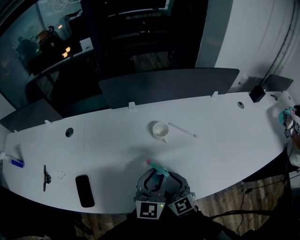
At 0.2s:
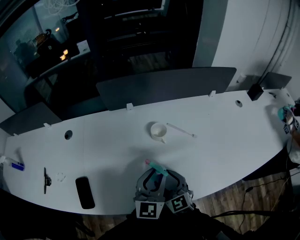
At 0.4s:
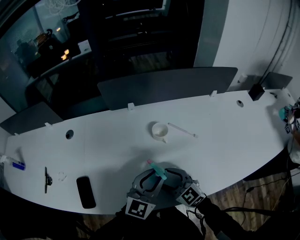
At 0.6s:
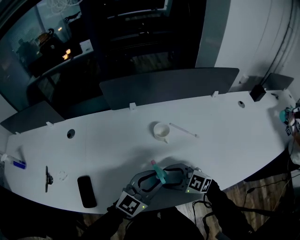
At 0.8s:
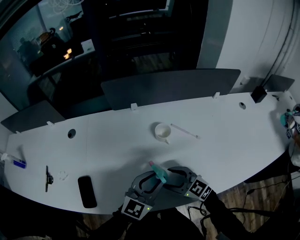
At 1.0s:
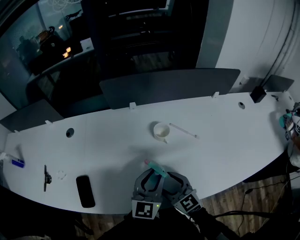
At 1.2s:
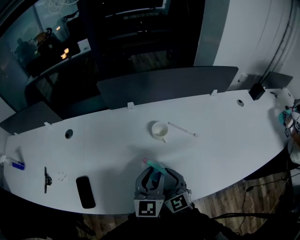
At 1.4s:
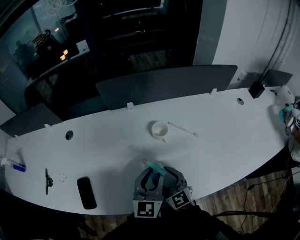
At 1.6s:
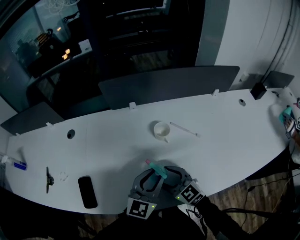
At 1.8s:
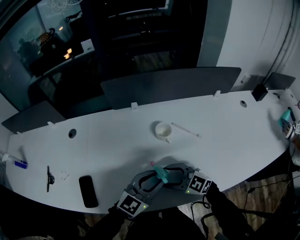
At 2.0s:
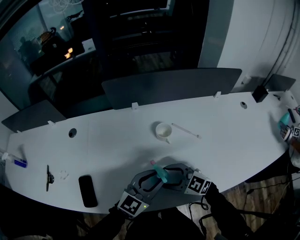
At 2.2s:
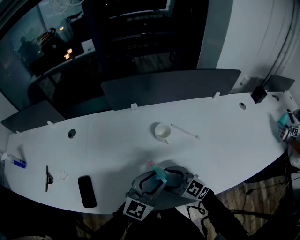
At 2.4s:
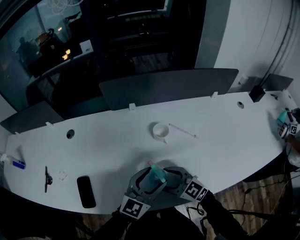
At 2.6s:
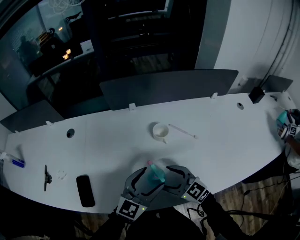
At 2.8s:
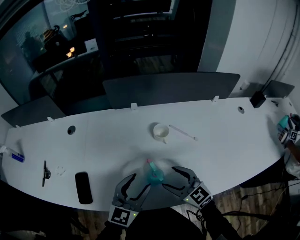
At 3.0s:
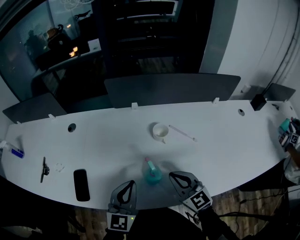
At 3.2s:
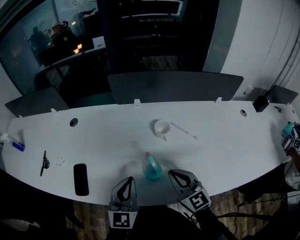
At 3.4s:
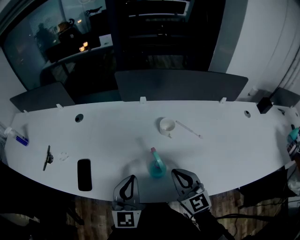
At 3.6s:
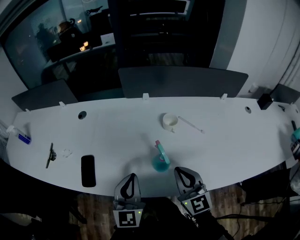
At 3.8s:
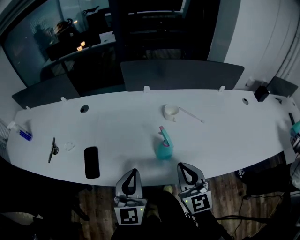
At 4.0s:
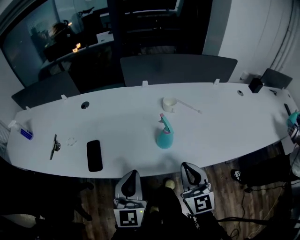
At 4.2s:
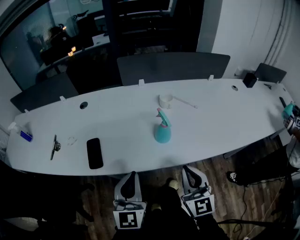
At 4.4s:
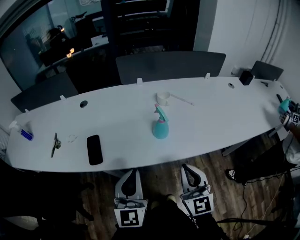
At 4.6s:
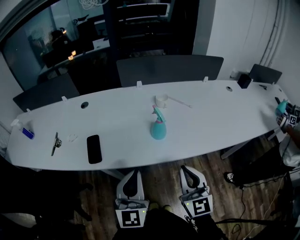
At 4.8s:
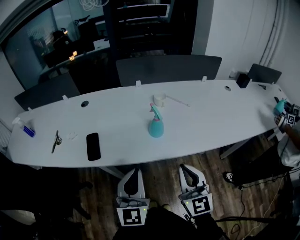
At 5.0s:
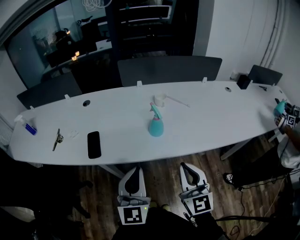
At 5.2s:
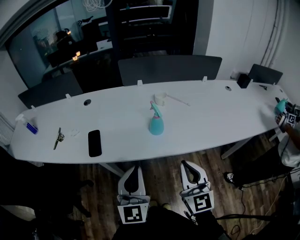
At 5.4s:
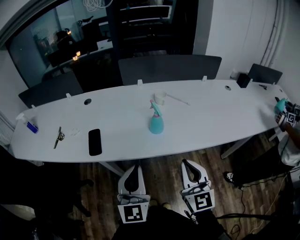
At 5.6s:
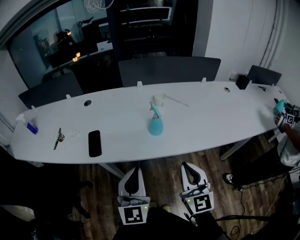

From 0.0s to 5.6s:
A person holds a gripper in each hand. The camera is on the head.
From 1.4s to 2.8s: The left gripper goes roughly 5 cm to the left, and opens up; the right gripper changes place by some 5 cm.
From 2.8s to 4.2s: The right gripper heads backward, covering roughly 20 cm, turns by roughly 40 degrees, and closes its fingers. The left gripper moves backward and to the left, some 20 cm, swivels about 20 degrees, and closes up.
From 4.2s to 5.6s: The two grippers go some 10 cm backward.

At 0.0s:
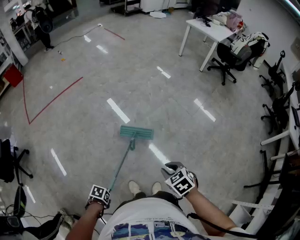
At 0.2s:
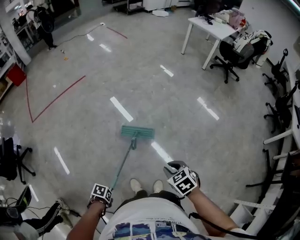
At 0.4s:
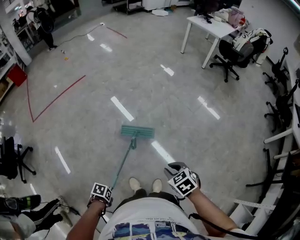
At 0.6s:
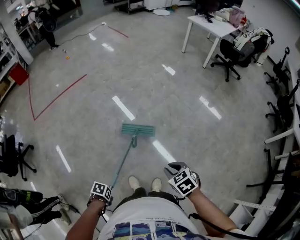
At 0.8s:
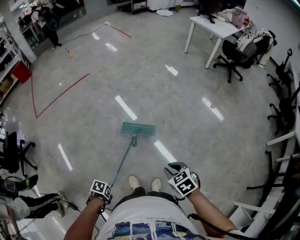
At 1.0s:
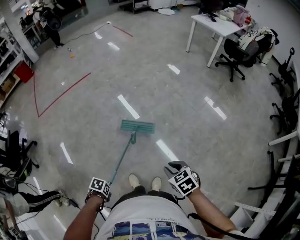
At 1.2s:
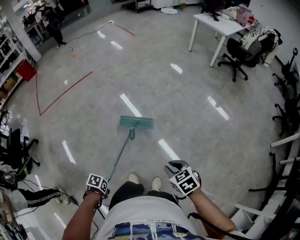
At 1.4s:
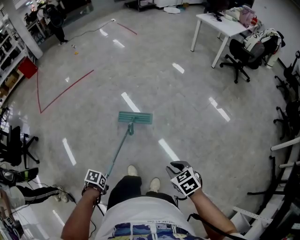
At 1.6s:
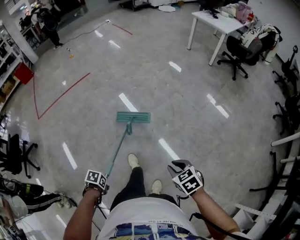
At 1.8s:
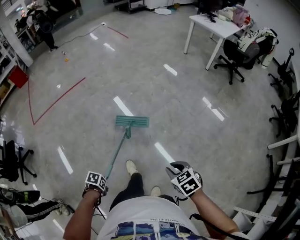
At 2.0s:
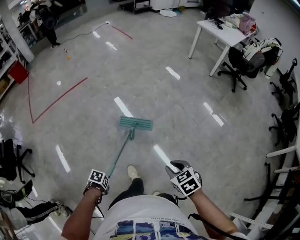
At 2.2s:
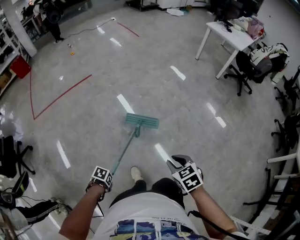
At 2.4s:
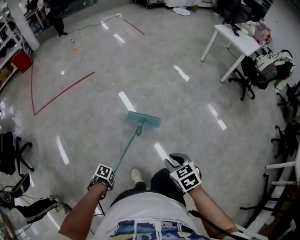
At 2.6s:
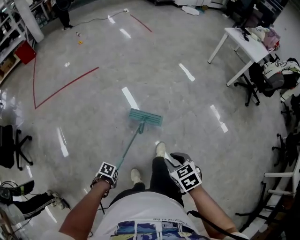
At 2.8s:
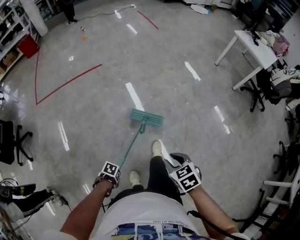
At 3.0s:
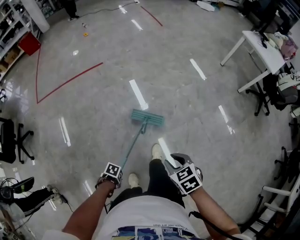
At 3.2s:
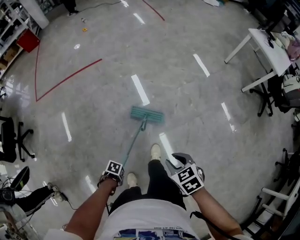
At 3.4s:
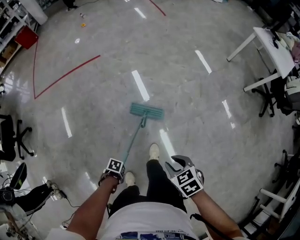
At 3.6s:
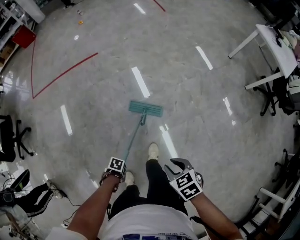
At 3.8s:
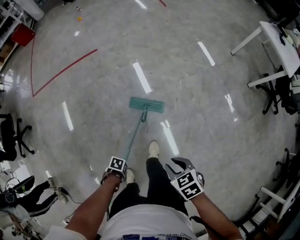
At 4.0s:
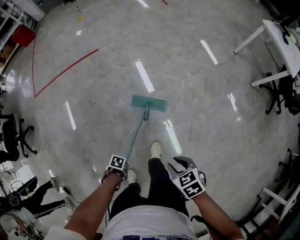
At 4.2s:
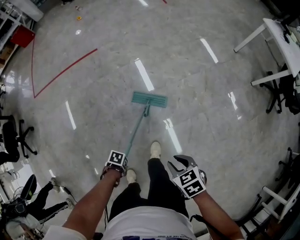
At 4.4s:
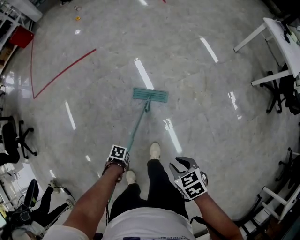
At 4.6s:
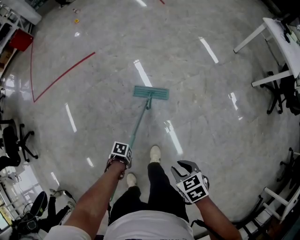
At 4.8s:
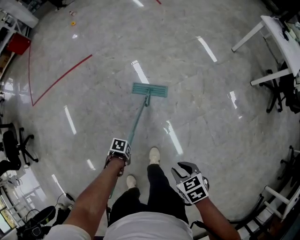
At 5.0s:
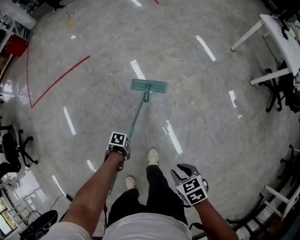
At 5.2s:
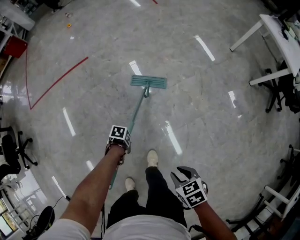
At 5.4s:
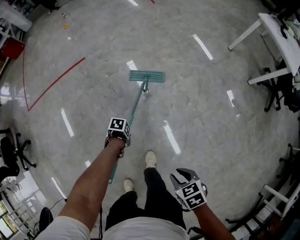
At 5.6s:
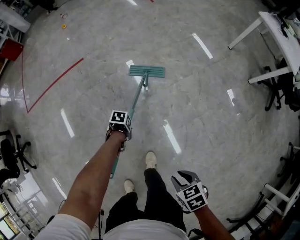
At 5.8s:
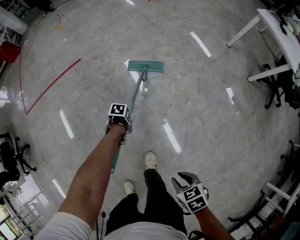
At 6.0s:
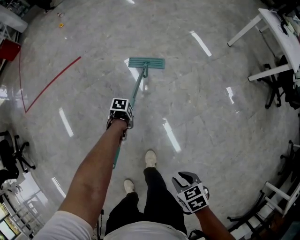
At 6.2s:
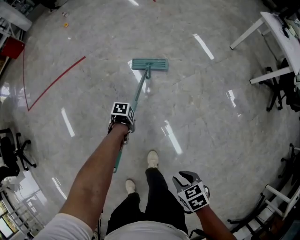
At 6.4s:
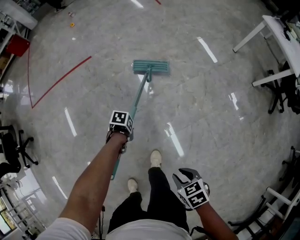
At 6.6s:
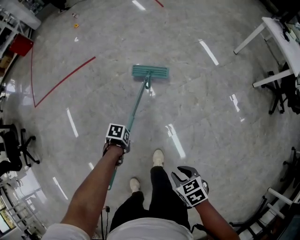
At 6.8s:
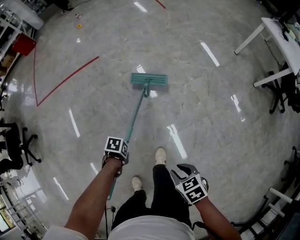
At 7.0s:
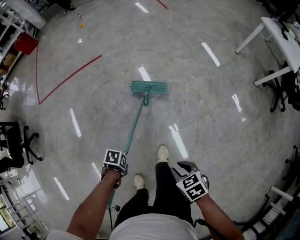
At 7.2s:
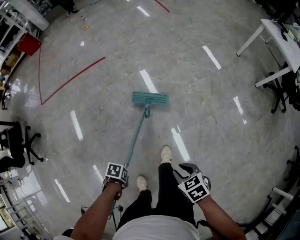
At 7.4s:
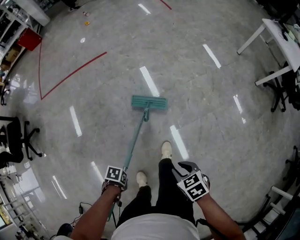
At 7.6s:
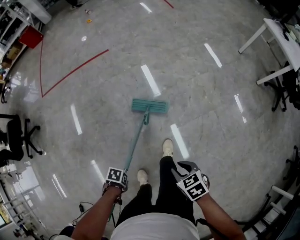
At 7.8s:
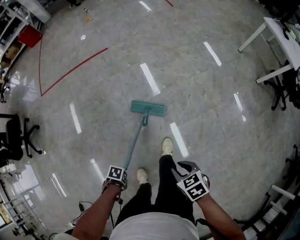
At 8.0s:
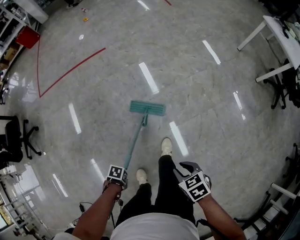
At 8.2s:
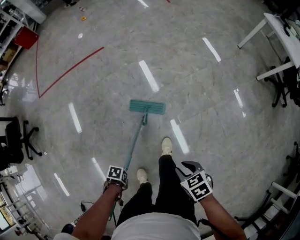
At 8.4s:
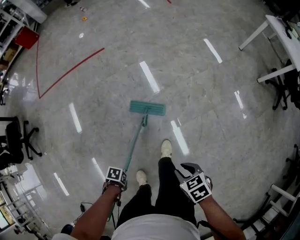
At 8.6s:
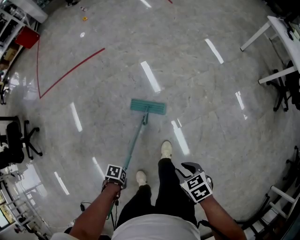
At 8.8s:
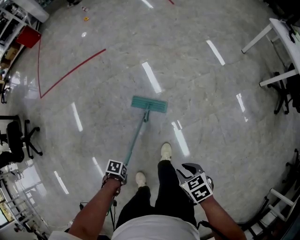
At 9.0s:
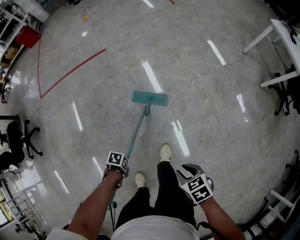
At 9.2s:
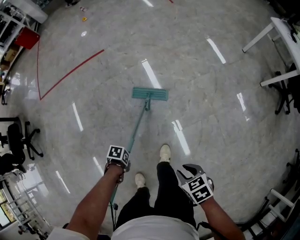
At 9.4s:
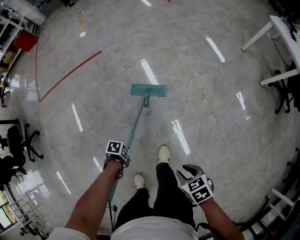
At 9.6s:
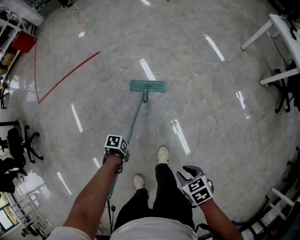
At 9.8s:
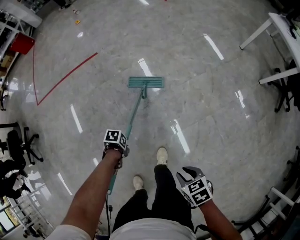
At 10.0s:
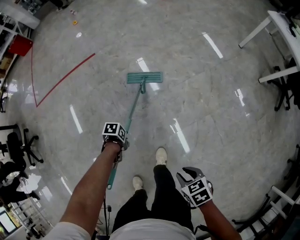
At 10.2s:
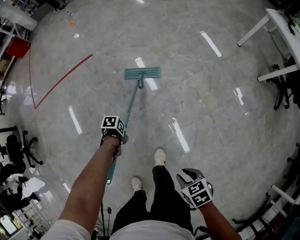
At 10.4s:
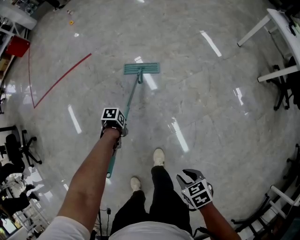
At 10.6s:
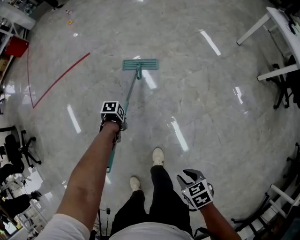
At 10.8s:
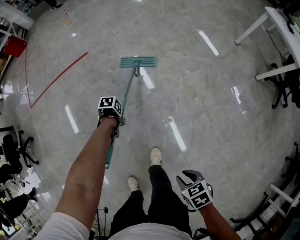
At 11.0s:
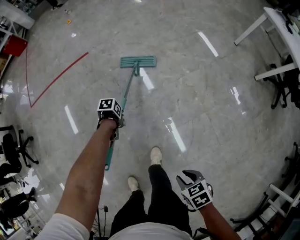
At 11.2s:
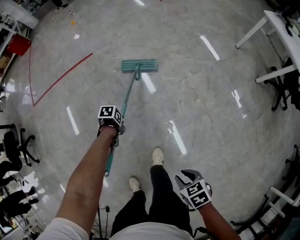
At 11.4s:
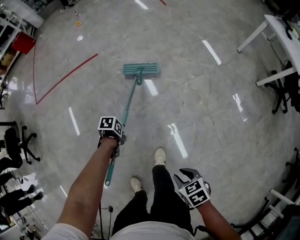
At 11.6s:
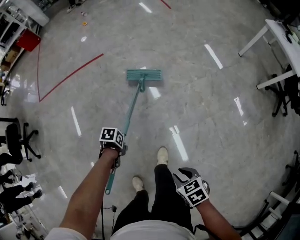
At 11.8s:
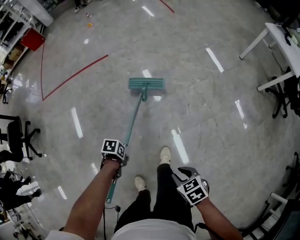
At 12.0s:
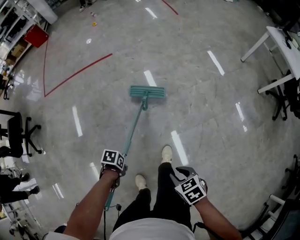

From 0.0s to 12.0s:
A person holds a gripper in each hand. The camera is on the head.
From 0.0s to 1.6s: The right gripper moves approximately 10 cm.
From 1.6s to 3.0s: The right gripper changes place by about 35 cm.
From 3.0s to 4.4s: The right gripper shifts by approximately 10 cm.
From 4.4s to 6.0s: The right gripper changes place by some 5 cm.
From 6.0s to 7.6s: The right gripper shifts by some 15 cm.
From 7.6s to 9.0s: The right gripper changes place by some 5 cm.
From 9.0s to 10.4s: The right gripper shifts by about 5 cm.
From 10.4s to 12.0s: The right gripper moves about 15 cm.

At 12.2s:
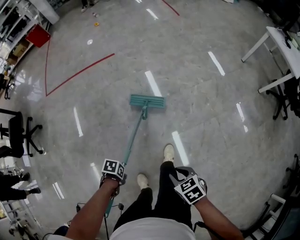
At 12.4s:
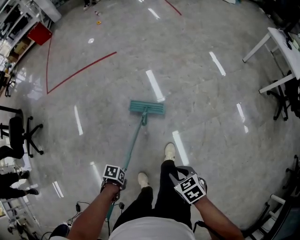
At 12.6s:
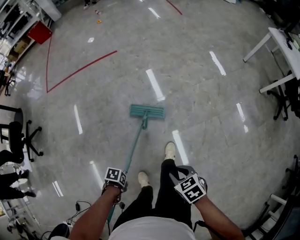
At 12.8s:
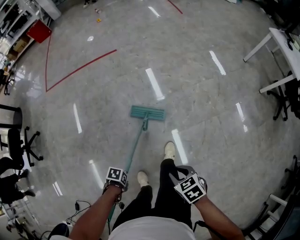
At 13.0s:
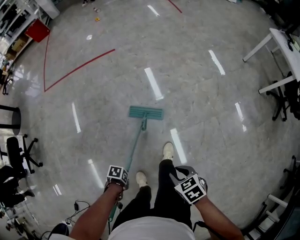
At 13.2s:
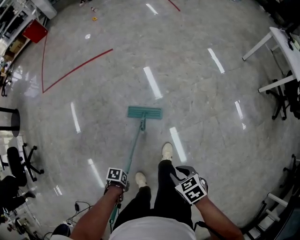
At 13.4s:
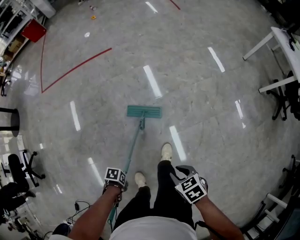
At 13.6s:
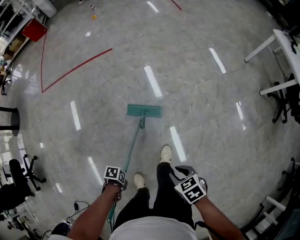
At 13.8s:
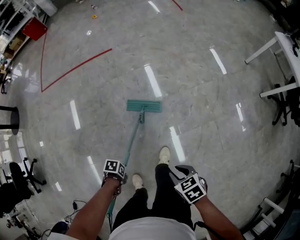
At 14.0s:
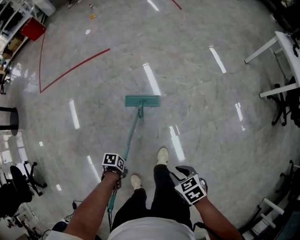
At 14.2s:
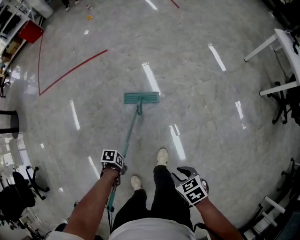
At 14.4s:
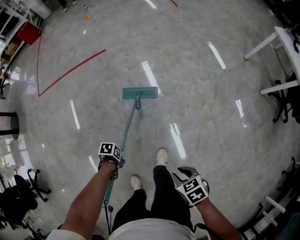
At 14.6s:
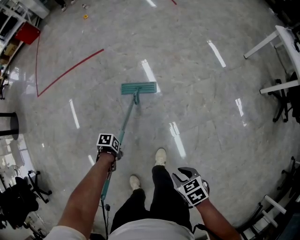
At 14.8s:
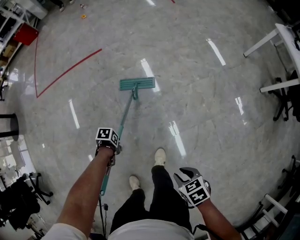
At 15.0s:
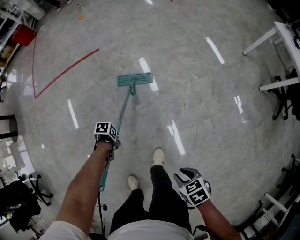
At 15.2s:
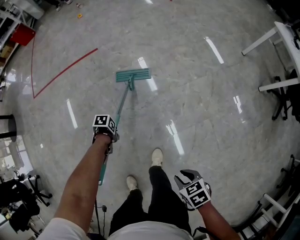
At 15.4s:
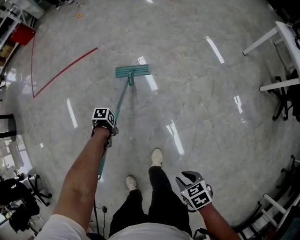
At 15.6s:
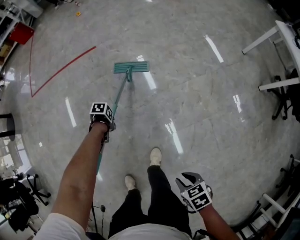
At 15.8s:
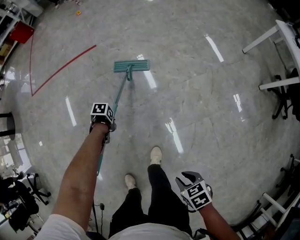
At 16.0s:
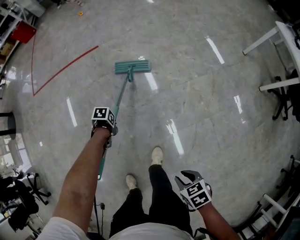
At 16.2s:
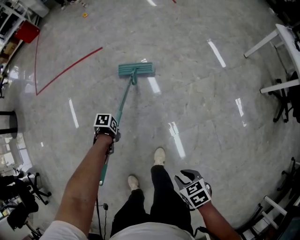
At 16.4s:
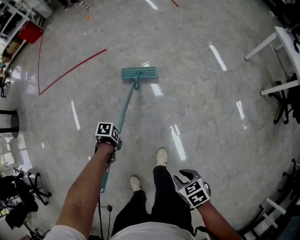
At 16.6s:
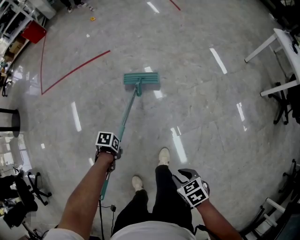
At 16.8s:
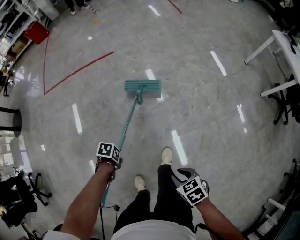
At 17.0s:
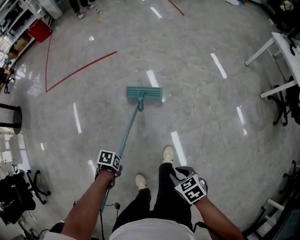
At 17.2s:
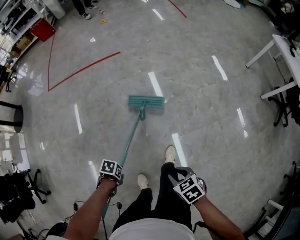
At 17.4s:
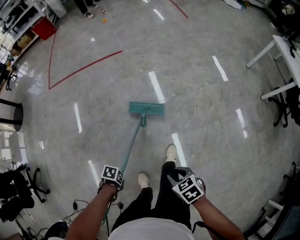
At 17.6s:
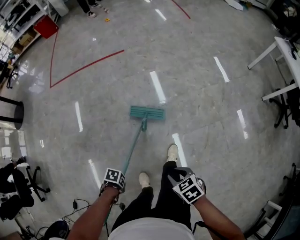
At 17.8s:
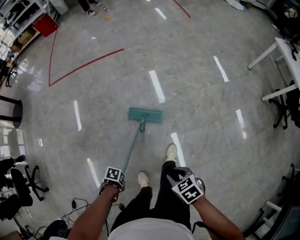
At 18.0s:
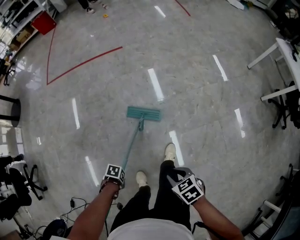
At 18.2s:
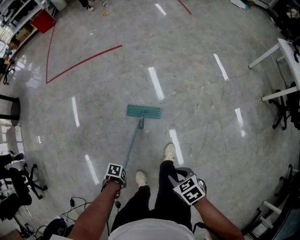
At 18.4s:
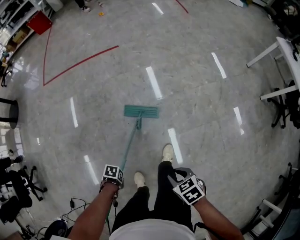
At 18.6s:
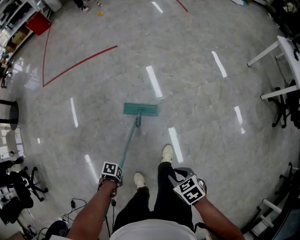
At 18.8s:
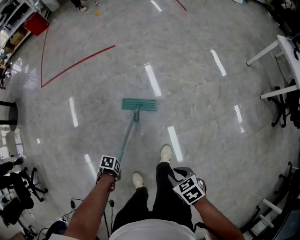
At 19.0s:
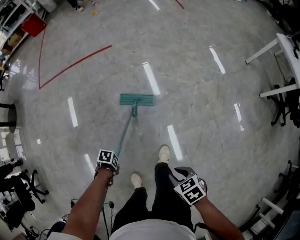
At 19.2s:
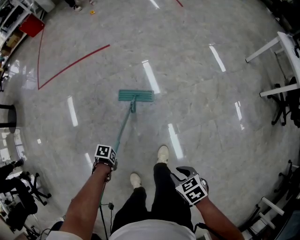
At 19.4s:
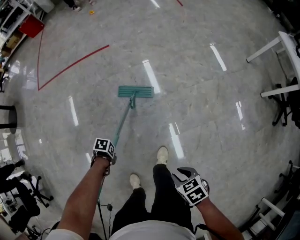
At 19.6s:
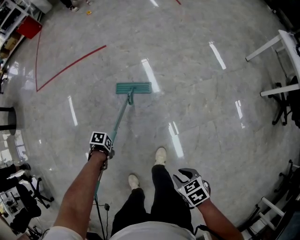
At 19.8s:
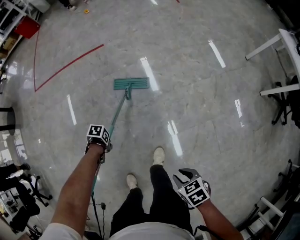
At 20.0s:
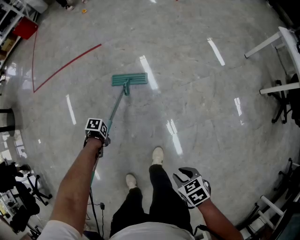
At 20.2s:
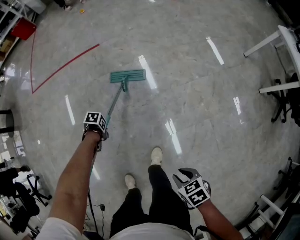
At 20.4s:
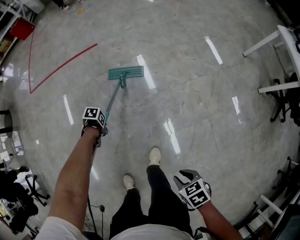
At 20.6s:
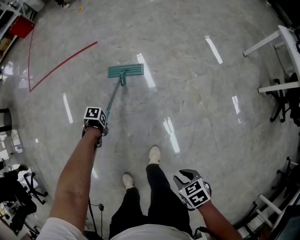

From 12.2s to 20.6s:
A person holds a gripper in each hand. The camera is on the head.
From 13.6s to 15.0s: The right gripper changes place by some 10 cm.
From 16.4s to 17.8s: The right gripper ends up roughly 15 cm from where it was.
From 17.8s to 19.2s: The right gripper changes place by roughly 10 cm.
From 19.2s to 20.6s: The right gripper changes place by roughly 10 cm.
